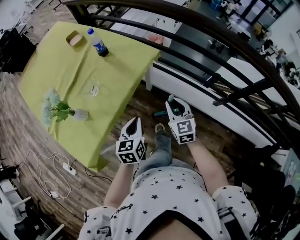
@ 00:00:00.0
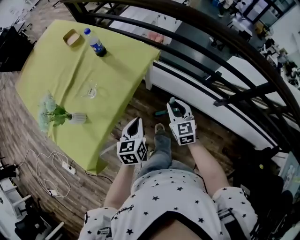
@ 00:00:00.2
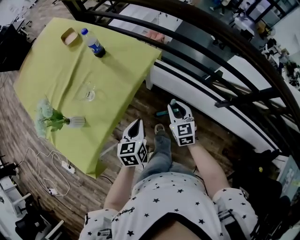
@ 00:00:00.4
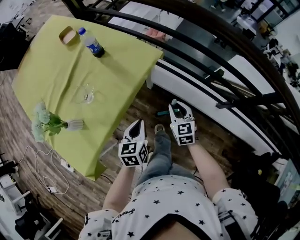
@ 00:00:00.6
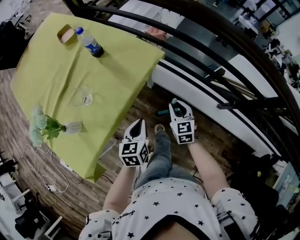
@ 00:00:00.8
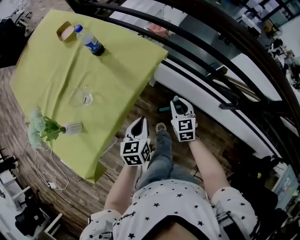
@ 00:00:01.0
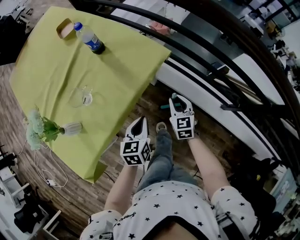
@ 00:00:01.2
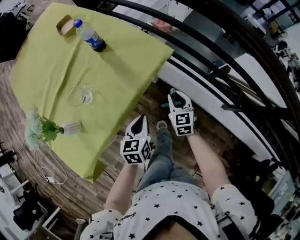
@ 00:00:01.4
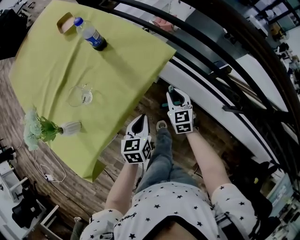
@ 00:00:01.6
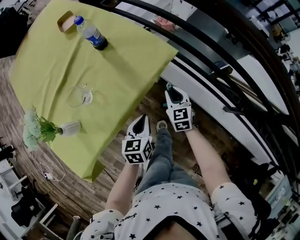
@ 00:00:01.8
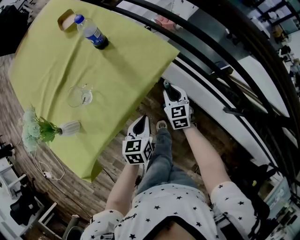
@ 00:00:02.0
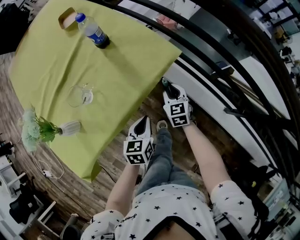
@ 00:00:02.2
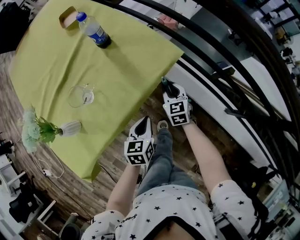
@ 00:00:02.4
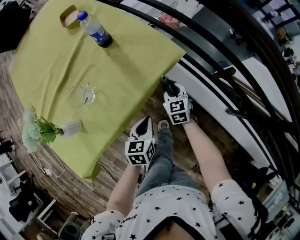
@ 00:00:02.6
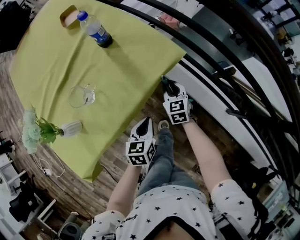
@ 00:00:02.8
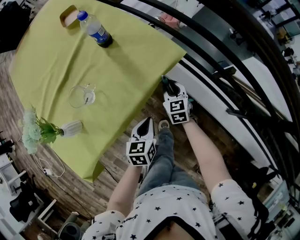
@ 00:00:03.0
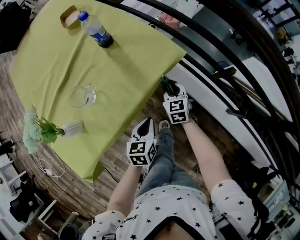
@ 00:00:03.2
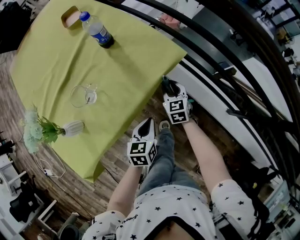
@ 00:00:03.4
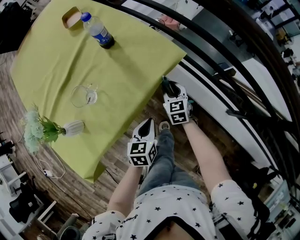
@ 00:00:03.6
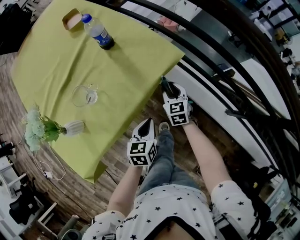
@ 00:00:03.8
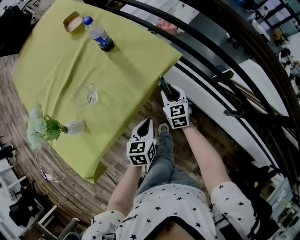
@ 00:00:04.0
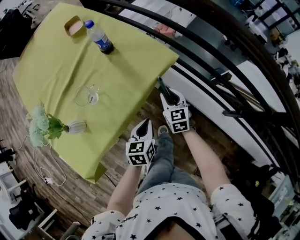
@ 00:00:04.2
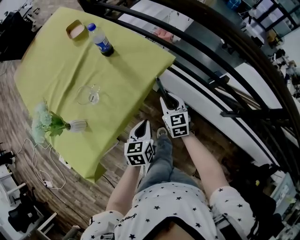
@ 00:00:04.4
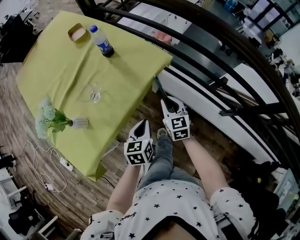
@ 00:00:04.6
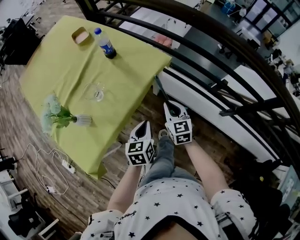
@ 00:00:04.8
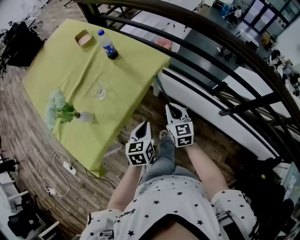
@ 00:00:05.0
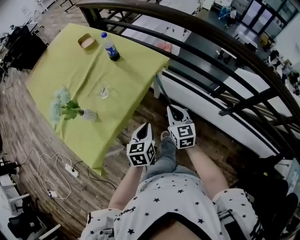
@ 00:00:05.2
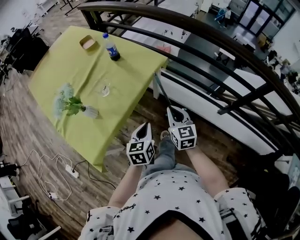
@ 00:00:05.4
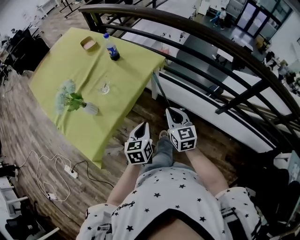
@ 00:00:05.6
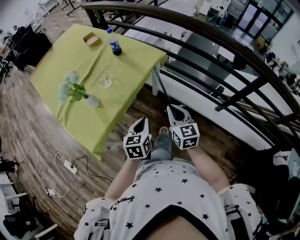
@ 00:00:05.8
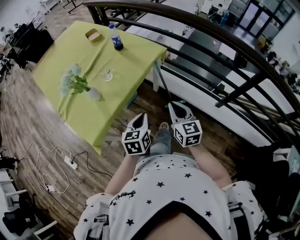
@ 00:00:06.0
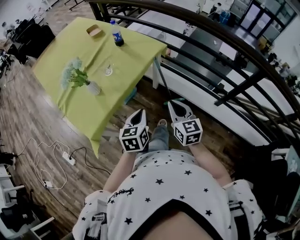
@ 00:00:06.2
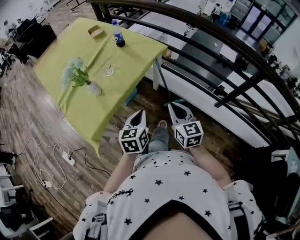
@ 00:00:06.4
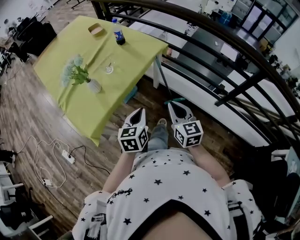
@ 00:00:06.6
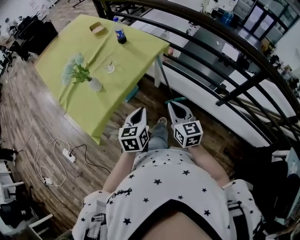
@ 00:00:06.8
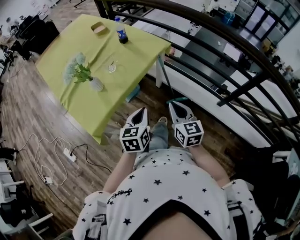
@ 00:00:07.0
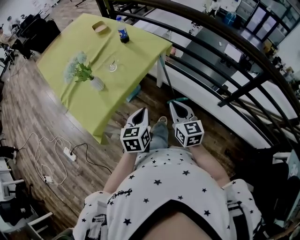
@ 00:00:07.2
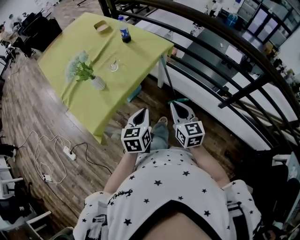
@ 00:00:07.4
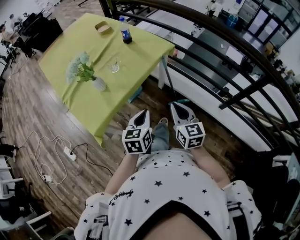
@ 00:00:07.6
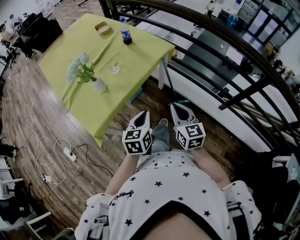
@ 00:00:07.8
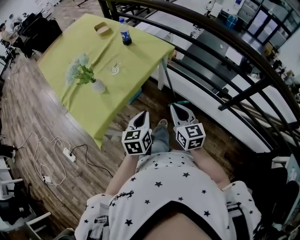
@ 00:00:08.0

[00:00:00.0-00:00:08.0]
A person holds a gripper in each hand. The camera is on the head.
00:00:00.0 to 00:00:01.6: Both grippers travel together forward and downward, roughly 20 cm.
00:00:01.6 to 00:00:03.2: The right gripper is displaced forward and to the left by approximately 5 cm.
00:00:03.2 to 00:00:04.8: The right gripper moves backward and upward, roughly 20 cm; the left gripper shifts some 10 cm upward and backward.
00:00:04.8 to 00:00:06.4: The two grippers go roughly 25 cm backward and upward.
00:00:06.4 to 00:00:08.0: The grippers stay close to where they were, moving slightly.

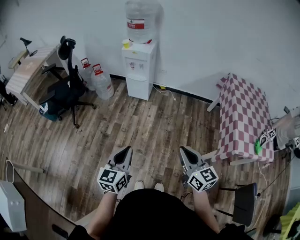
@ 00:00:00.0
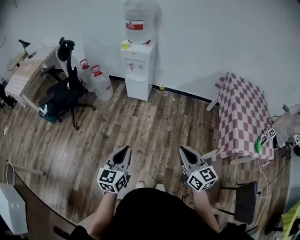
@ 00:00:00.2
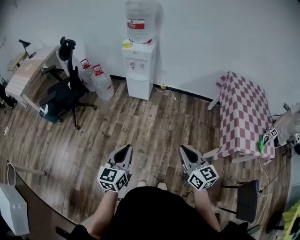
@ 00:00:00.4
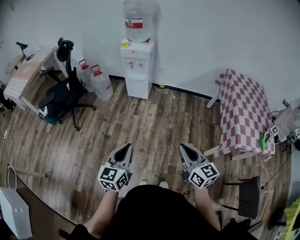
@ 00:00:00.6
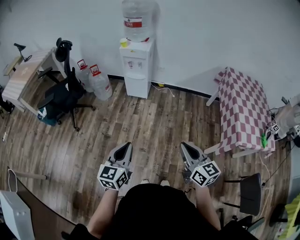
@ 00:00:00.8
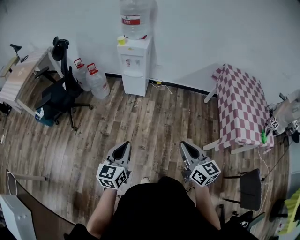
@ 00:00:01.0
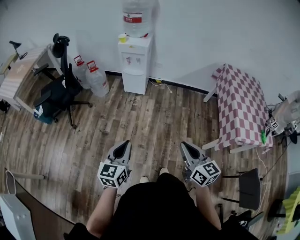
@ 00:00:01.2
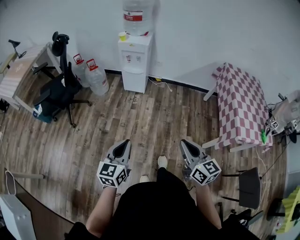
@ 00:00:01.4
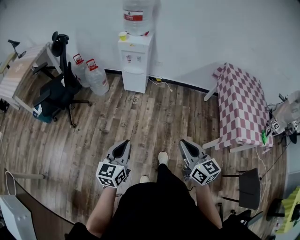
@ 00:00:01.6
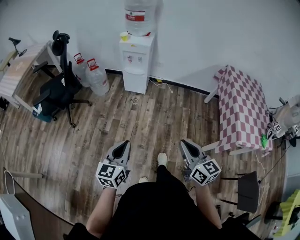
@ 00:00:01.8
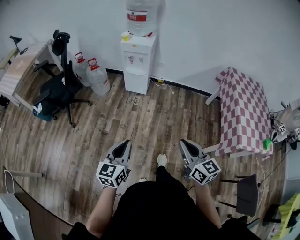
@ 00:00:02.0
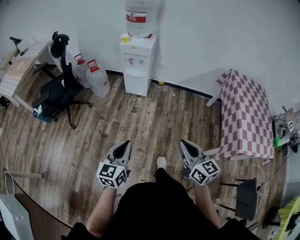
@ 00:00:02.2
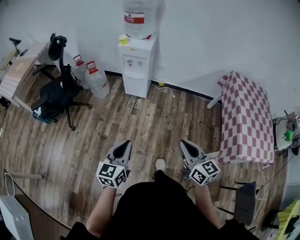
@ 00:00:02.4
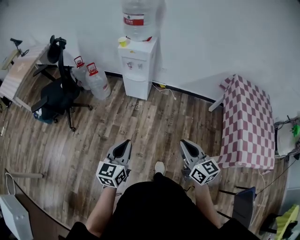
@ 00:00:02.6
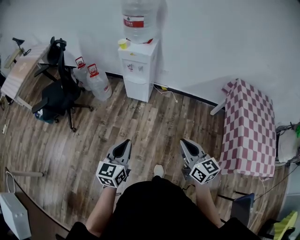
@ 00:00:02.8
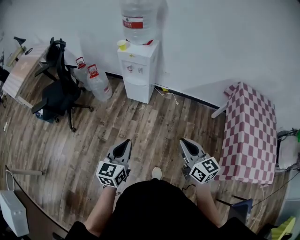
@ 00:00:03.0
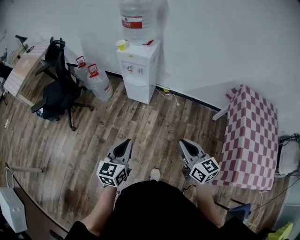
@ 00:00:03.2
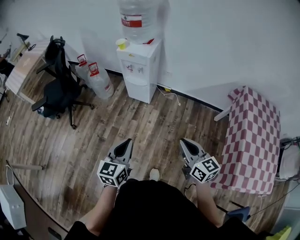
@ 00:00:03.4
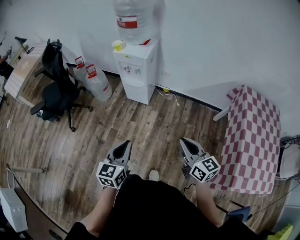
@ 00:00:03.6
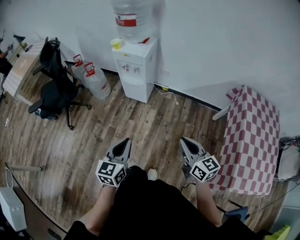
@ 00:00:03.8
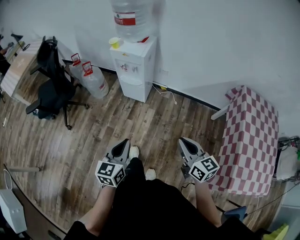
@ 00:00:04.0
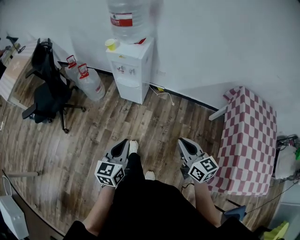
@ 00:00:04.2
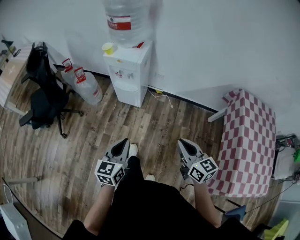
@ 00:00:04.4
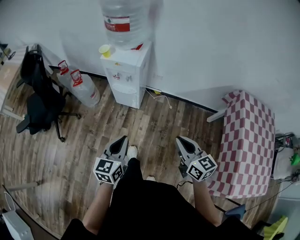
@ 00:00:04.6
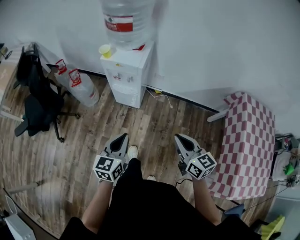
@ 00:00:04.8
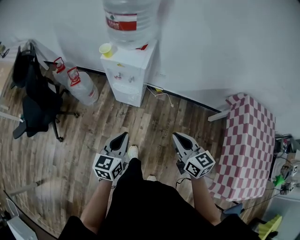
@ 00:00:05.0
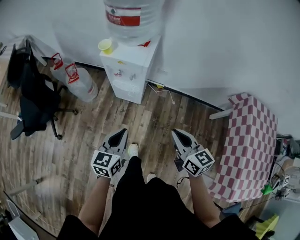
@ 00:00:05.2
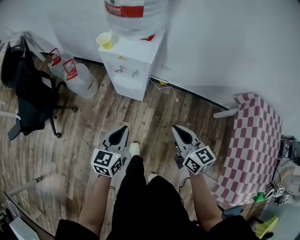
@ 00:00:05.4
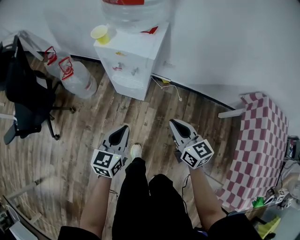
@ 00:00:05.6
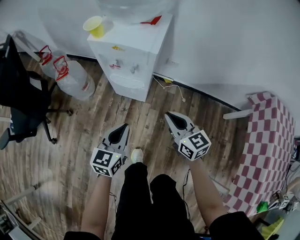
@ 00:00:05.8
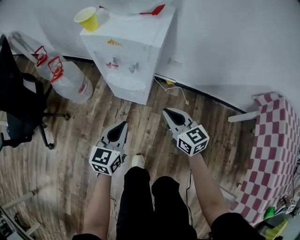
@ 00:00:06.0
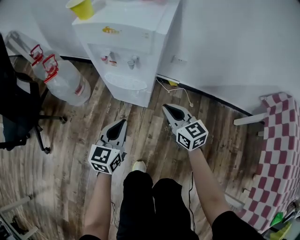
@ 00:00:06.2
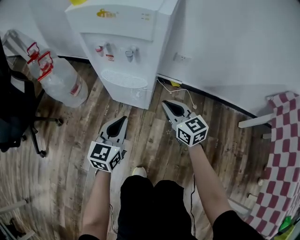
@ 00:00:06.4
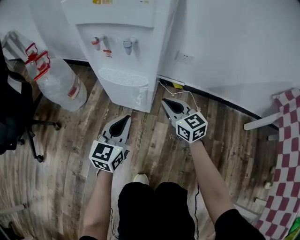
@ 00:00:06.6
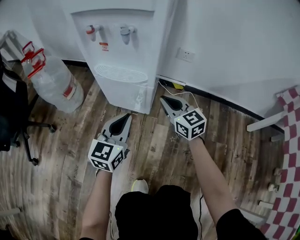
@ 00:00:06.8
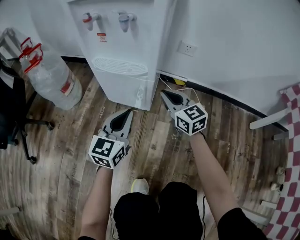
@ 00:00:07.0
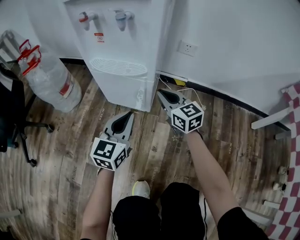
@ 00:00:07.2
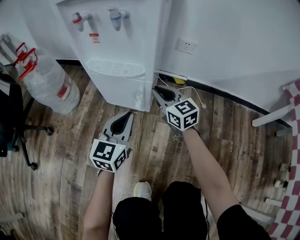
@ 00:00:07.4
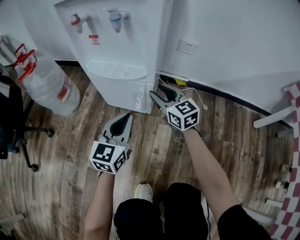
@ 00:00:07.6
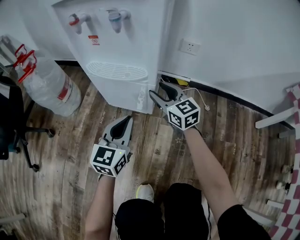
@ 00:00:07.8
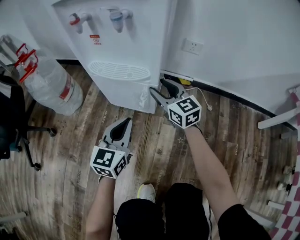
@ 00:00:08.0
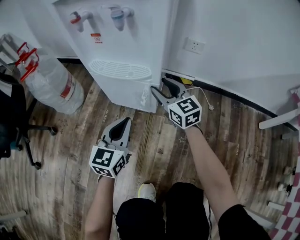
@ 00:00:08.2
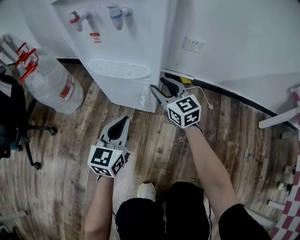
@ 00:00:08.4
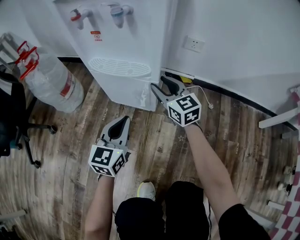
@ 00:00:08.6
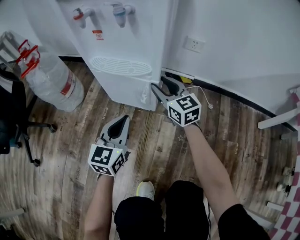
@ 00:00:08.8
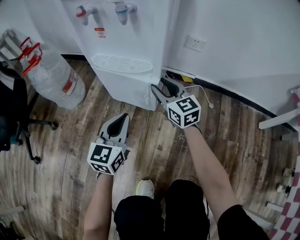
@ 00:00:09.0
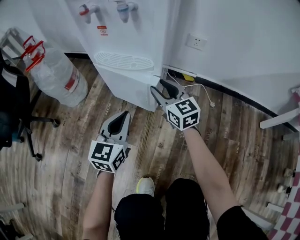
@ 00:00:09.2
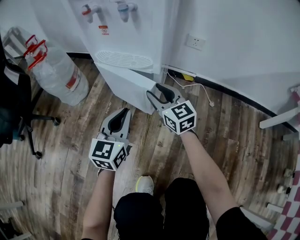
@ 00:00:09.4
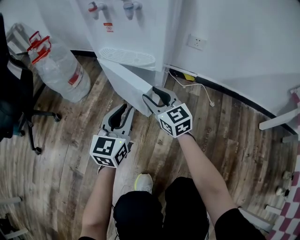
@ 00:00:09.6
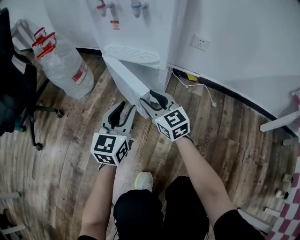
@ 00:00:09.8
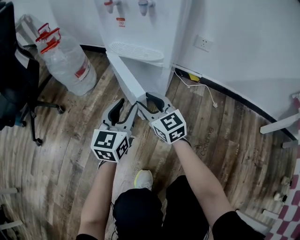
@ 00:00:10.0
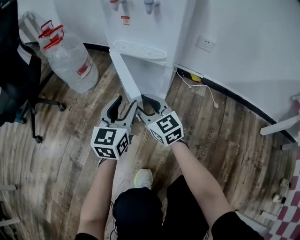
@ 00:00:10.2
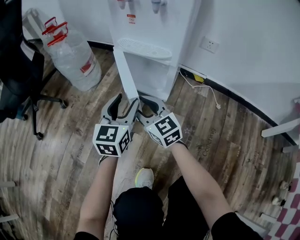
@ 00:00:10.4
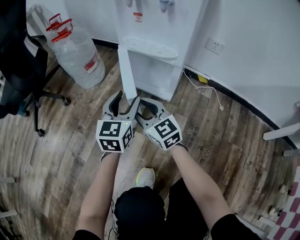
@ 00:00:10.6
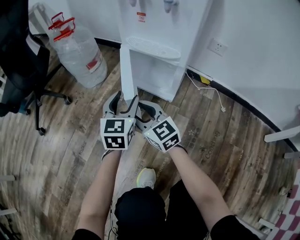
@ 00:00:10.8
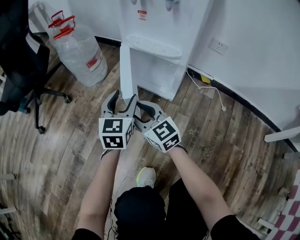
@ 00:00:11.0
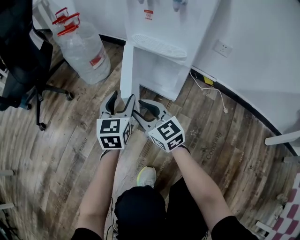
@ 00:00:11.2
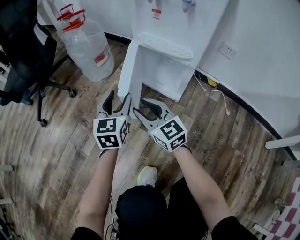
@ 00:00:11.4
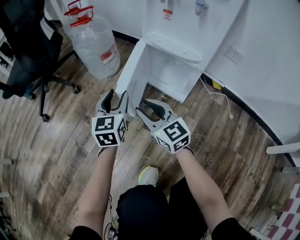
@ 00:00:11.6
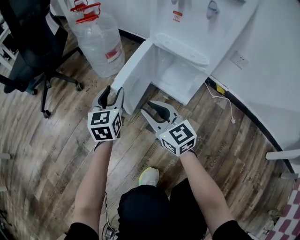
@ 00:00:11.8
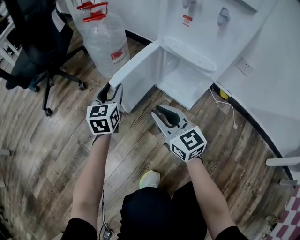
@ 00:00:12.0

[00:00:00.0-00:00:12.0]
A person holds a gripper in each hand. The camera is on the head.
00:00:00.0 to 00:00:01.6: Both grippers travel together to the left, roughly 10 cm.
00:00:01.6 to 00:00:03.0: Both grippers move forward and to the right, about 25 cm.
00:00:03.0 to 00:00:04.4: Both grippers travel together forward, about 15 cm.
00:00:04.4 to 00:00:06.0: Both grippers move forward and downward, about 40 cm.
00:00:06.0 to 00:00:07.6: The right gripper shifts approximately 35 cm downward and forward, and opens its fingers. Meanwhile the left gripper shifts roughly 25 cm downward.
00:00:07.6 to 00:00:09.0: The grippers move only a little.
00:00:09.0 to 00:00:10.4: The left gripper moves roughly 5 cm, and opens its fingers; the right gripper goes roughly 20 cm to the left and backward.
00:00:10.4 to 00:00:12.0: The right gripper moves to the left, some 5 cm, and closes its fingers, while the left gripper travels to the left and forward by roughly 20 cm, and changes its angle by approximately 20 degrees.

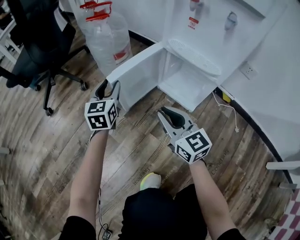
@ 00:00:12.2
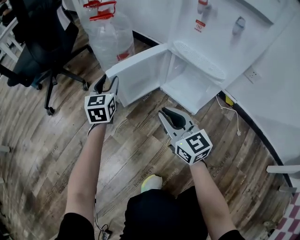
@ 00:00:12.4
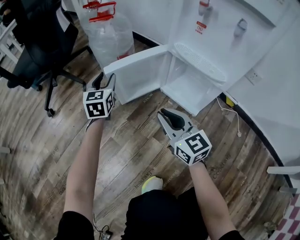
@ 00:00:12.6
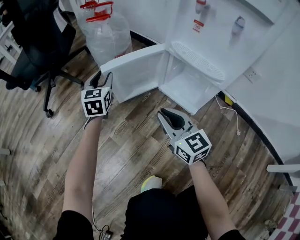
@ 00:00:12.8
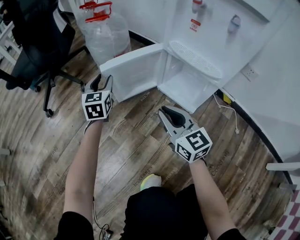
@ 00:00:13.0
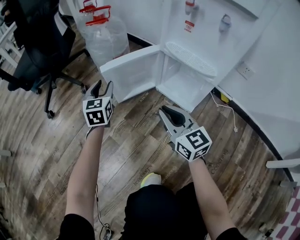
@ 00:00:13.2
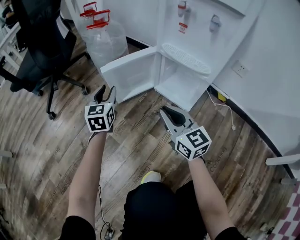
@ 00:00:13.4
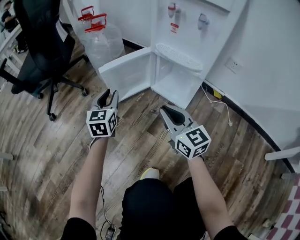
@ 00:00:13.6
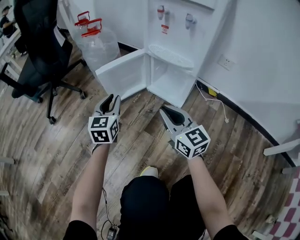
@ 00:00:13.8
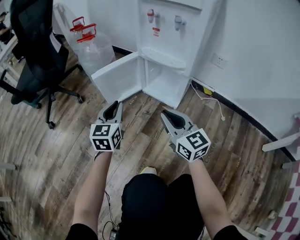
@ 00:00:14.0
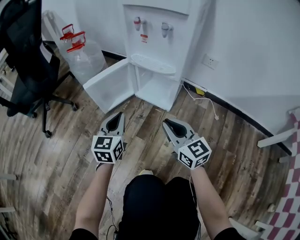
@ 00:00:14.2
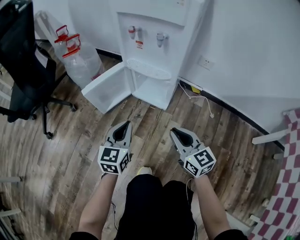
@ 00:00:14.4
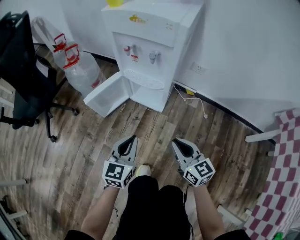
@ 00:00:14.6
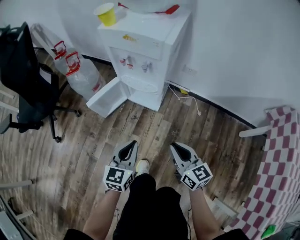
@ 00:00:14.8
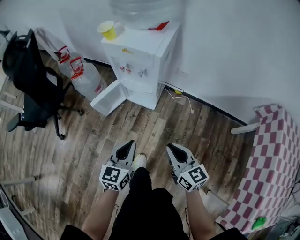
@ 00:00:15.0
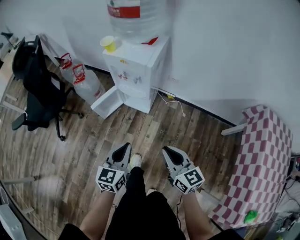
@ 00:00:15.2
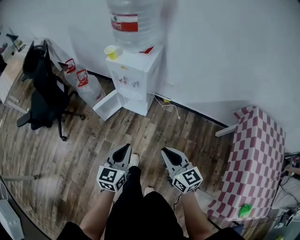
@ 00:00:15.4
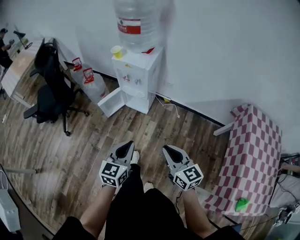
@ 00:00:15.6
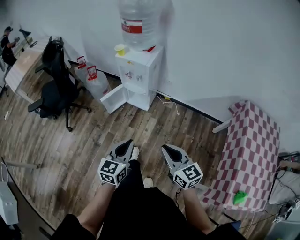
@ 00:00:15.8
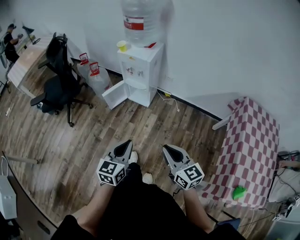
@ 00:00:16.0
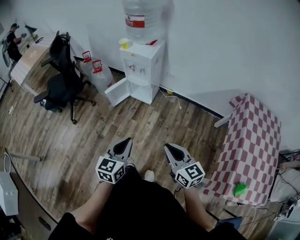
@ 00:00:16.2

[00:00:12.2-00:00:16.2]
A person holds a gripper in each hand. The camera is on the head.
00:00:12.2 to 00:00:13.6: The right gripper shifts by roughly 5 cm. Meanwhile the left gripper shifts about 5 cm backward.
00:00:13.6 to 00:00:14.8: The two grippers go some 30 cm upward, to the right and backward. The left gripper rotates approximately 30 degrees, and closes up. Meanwhile the right gripper swivels about 20 degrees.
00:00:14.8 to 00:00:16.2: The right gripper shifts roughly 50 cm backward and upward; the left gripper shifts roughly 50 cm upward and backward.
